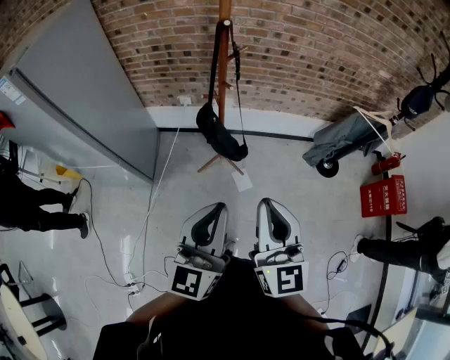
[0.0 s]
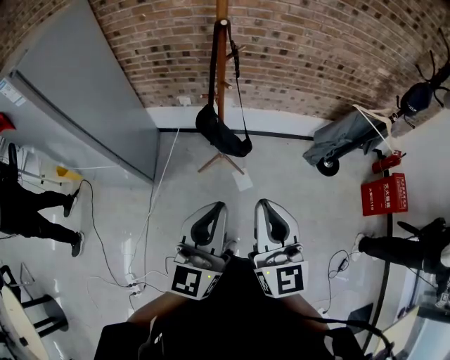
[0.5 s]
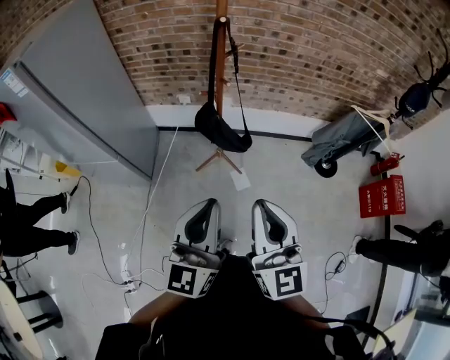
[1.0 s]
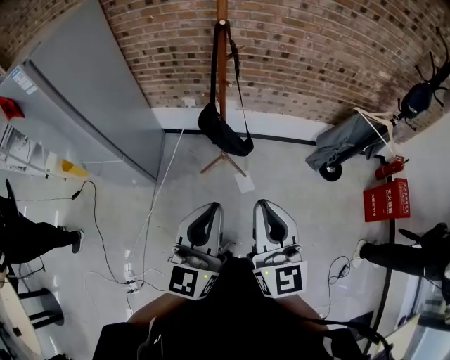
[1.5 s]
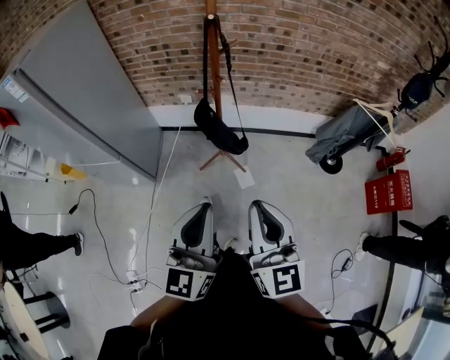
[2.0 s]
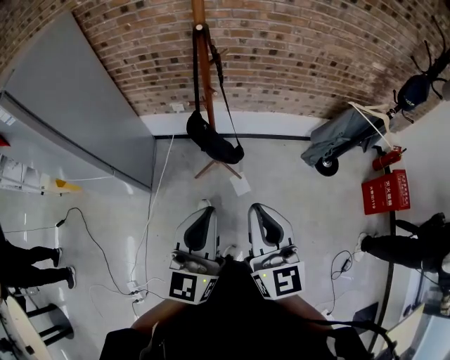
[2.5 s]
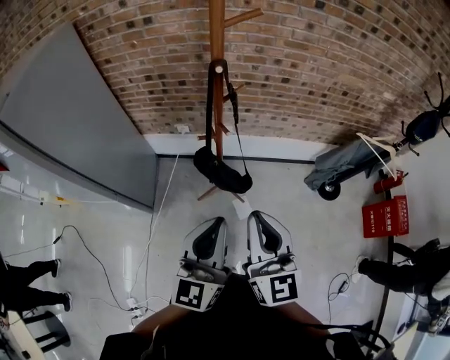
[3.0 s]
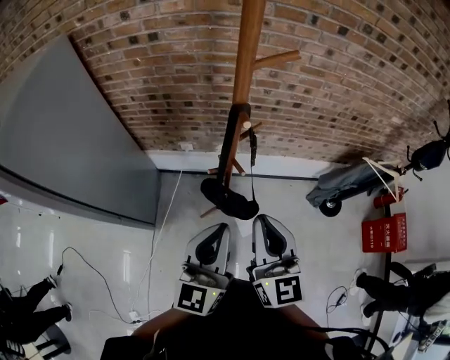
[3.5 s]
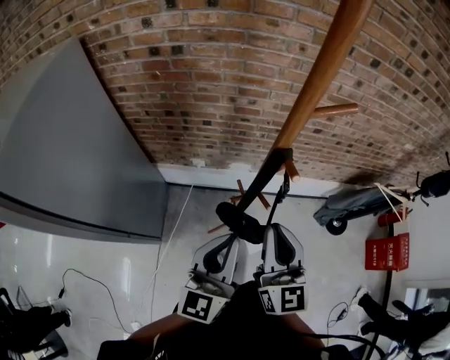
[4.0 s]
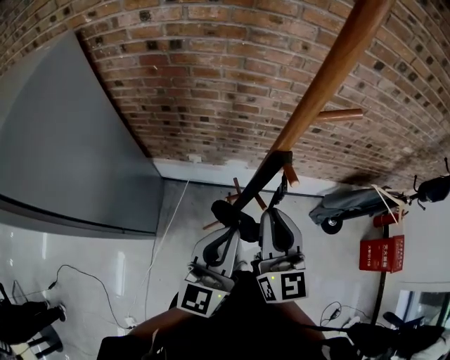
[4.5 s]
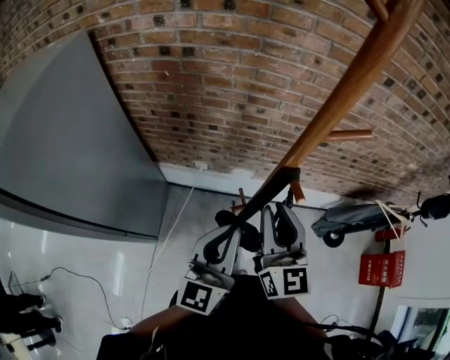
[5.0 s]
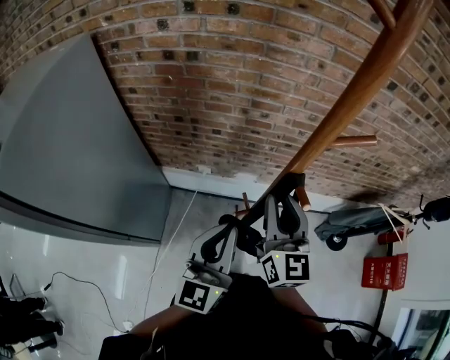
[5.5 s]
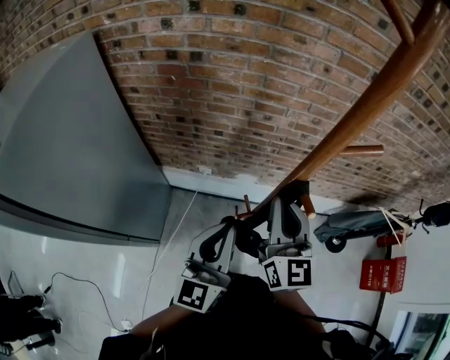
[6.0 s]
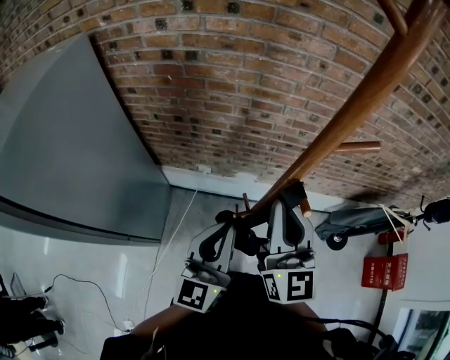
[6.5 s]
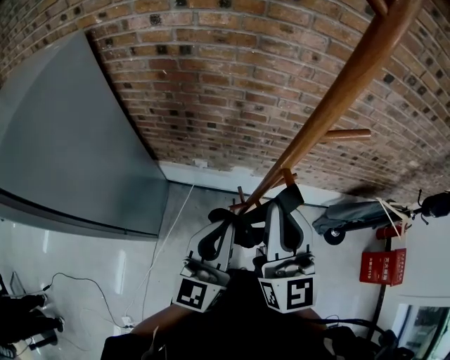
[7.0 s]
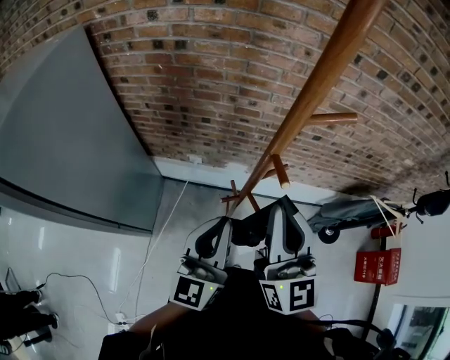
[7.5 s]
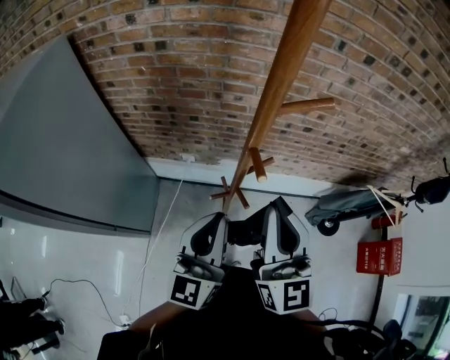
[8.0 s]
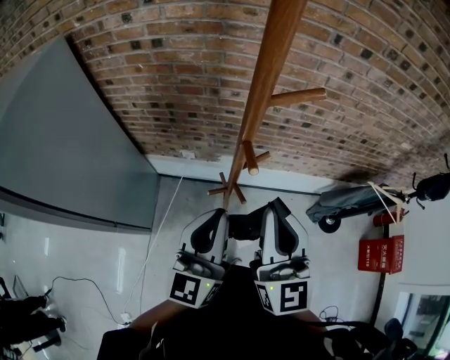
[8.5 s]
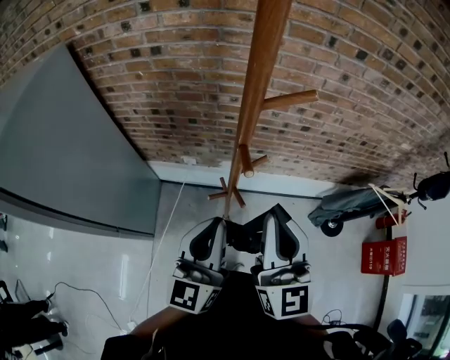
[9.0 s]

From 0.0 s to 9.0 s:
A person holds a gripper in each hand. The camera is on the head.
From 0.0 s to 2.0 s: The grippers make only small movements.
From 2.0 s to 4.5 s: Both grippers travel together forward, approximately 40 cm.
From 4.5 s to 7.0 s: The right gripper moves upward, some 10 cm, and reaches some 10 cm forward, then returns.
From 7.0 s to 9.0 s: The grippers both shift to the right by about 5 cm.

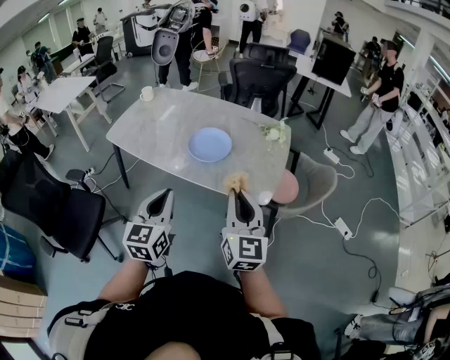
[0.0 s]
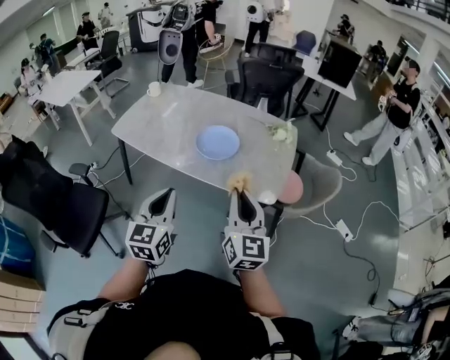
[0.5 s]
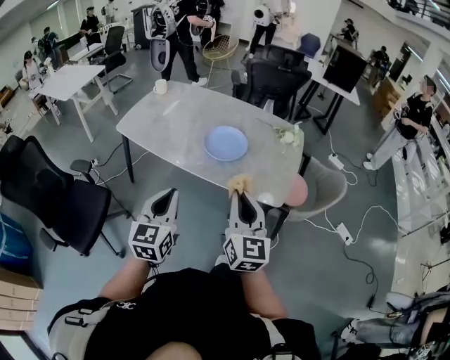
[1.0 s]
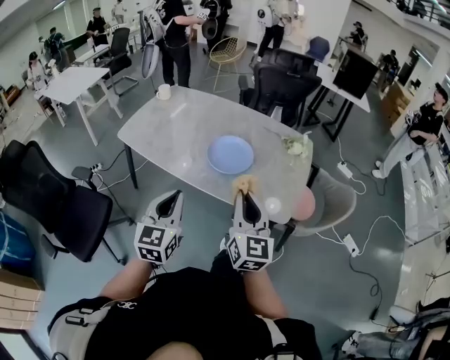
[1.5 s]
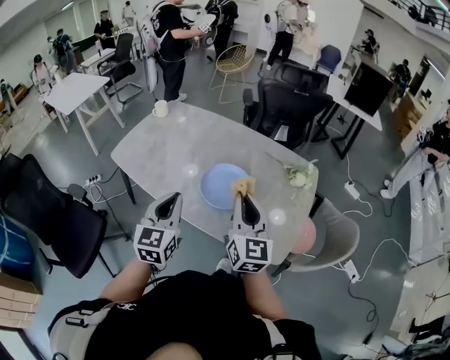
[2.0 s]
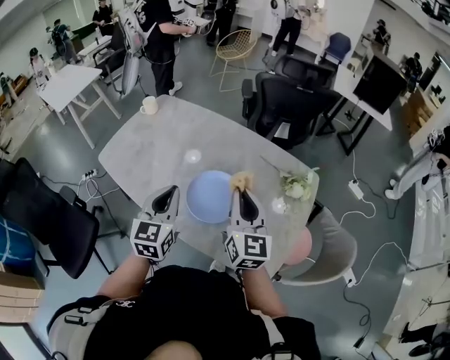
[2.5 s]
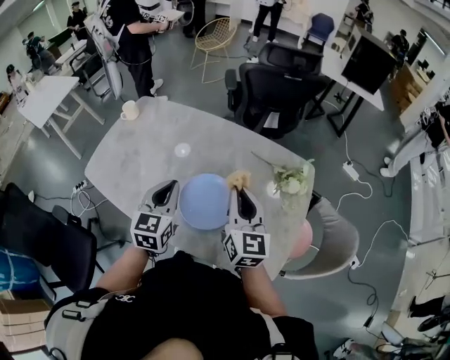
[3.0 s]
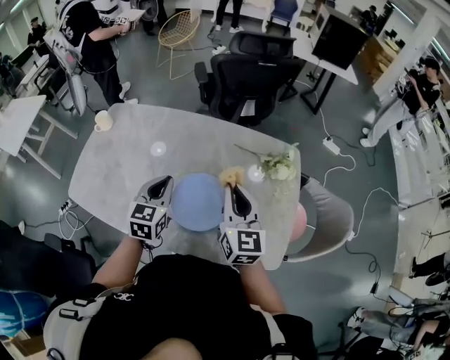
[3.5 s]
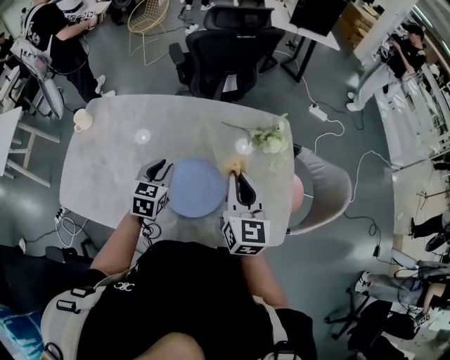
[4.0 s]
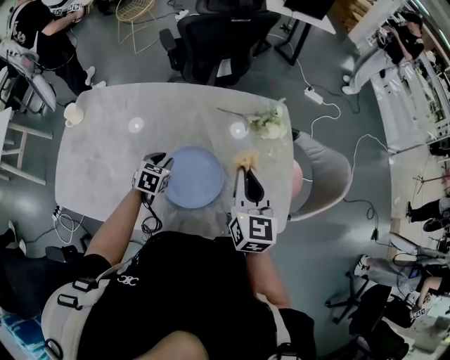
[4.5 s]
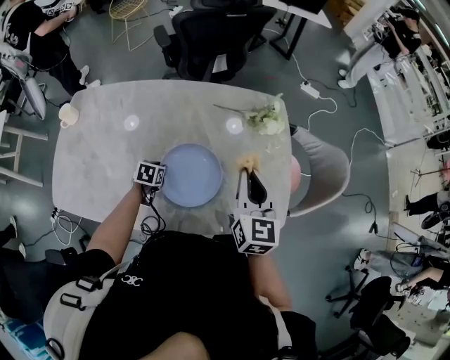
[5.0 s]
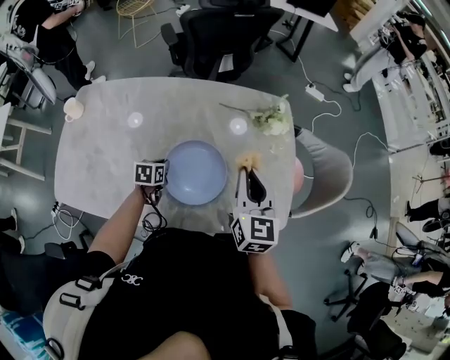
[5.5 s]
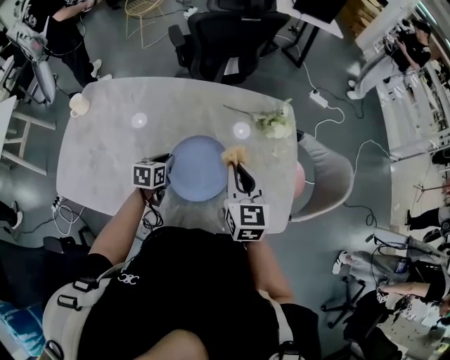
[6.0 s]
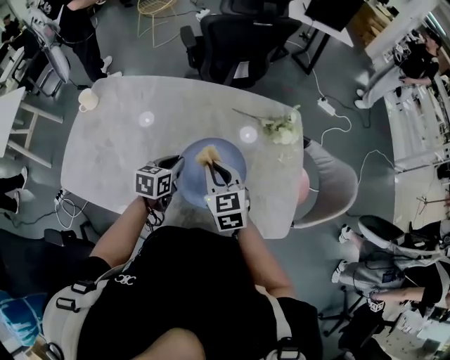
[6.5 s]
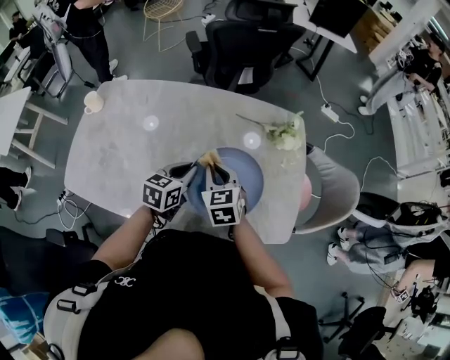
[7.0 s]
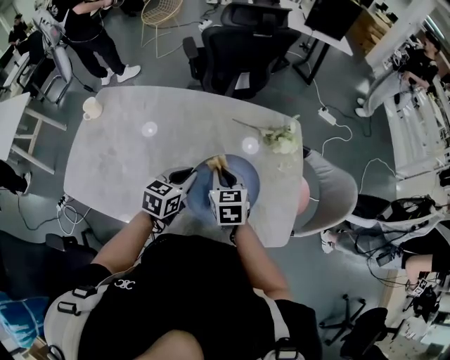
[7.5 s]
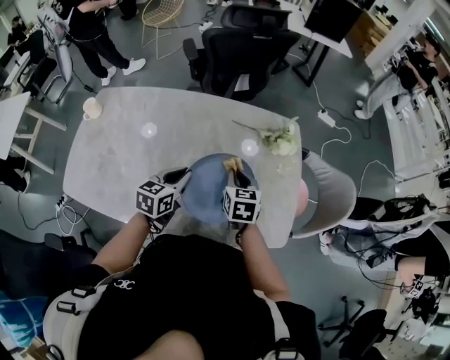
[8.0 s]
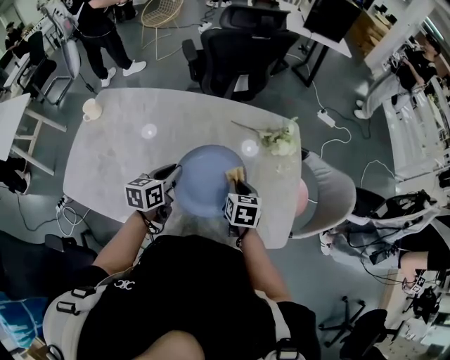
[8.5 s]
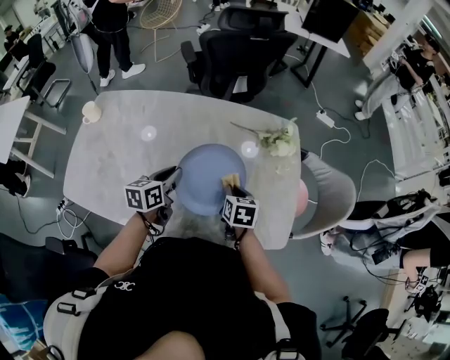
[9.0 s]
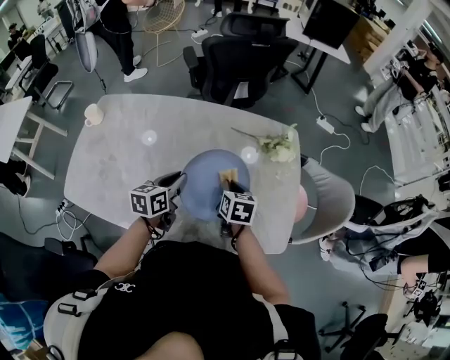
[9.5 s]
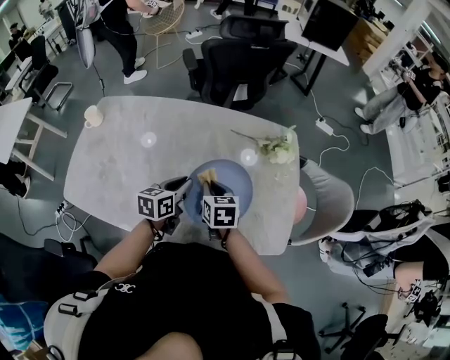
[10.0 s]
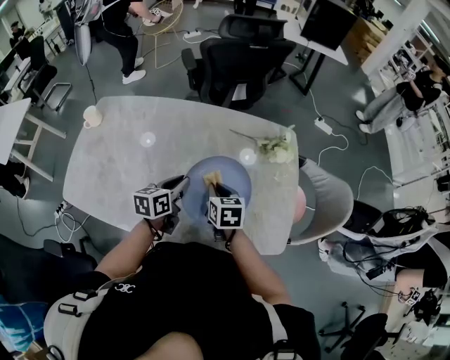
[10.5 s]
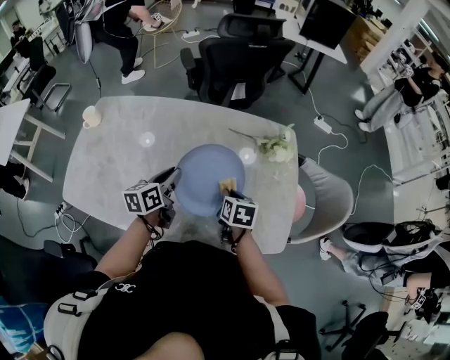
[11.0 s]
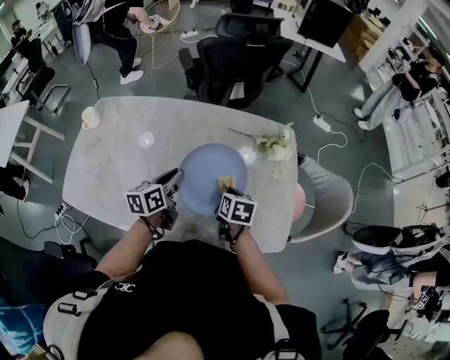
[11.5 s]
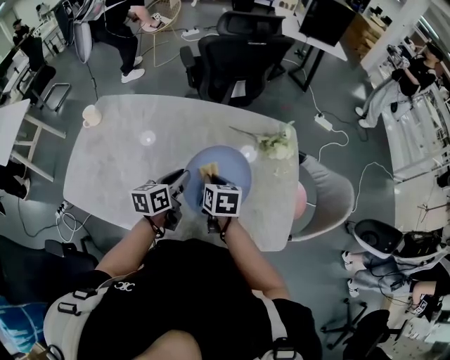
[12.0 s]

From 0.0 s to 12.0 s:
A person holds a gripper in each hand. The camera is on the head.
From 0.0 s to 2.0 s: Both grippers move forward, about 25 cm.
From 2.0 s to 4.0 s: The left gripper ends up roughly 35 cm from where it was, and rotates some 40 degrees. The right gripper moves some 20 cm, and swivels approximately 30 degrees.
From 4.0 s to 6.0 s: The left gripper moves downward, some 10 cm, and swivels some 20 degrees. Meanwhile the right gripper goes about 5 cm downward.
From 6.0 s to 8.0 s: The right gripper goes approximately 10 cm downward, reaches about 10 cm to the left, then returns, and swivels about 20 degrees. Meanwhile the left gripper shifts approximately 10 cm upward and to the right.
From 8.0 s to 10.0 s: The right gripper goes roughly 10 cm to the left.
From 10.0 s to 12.0 s: The right gripper reaches roughly 10 cm to the right, then returns.

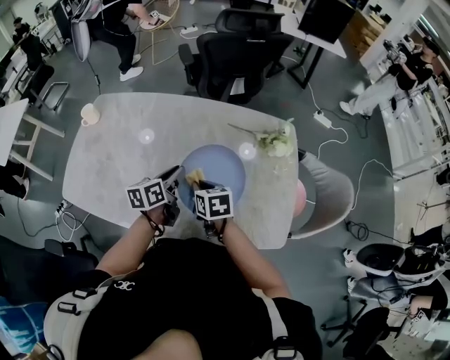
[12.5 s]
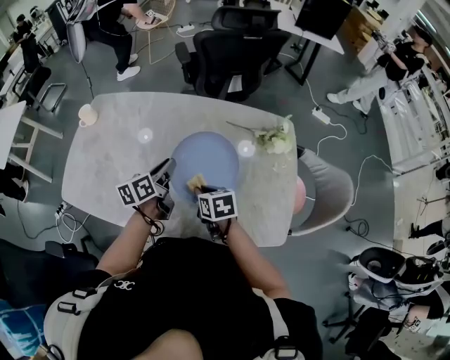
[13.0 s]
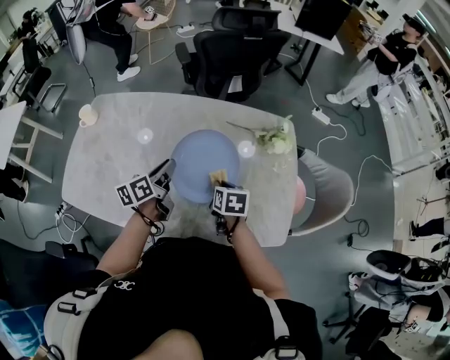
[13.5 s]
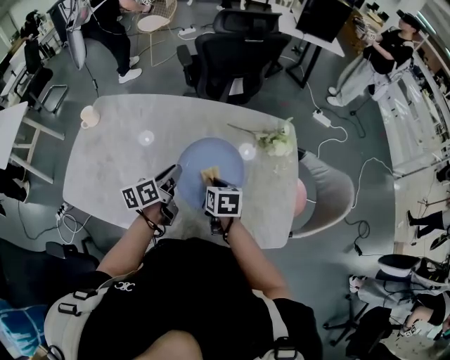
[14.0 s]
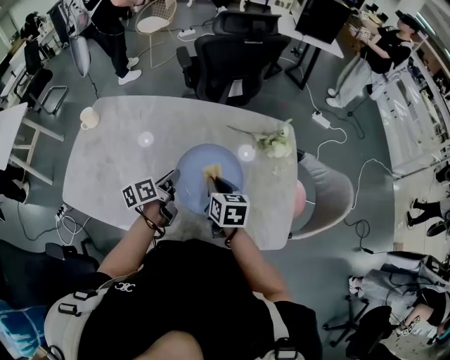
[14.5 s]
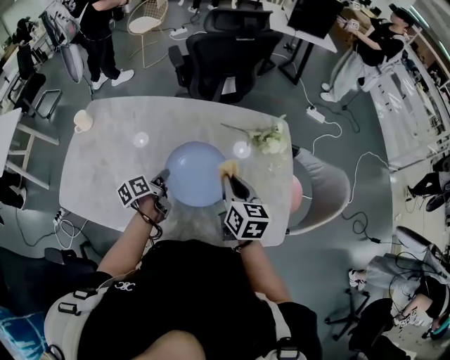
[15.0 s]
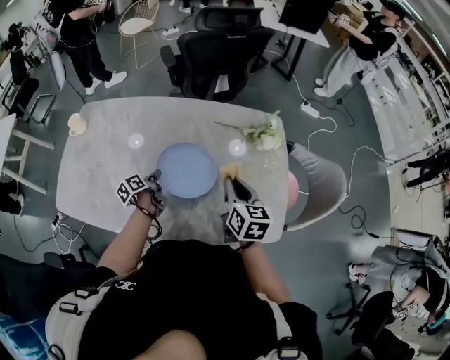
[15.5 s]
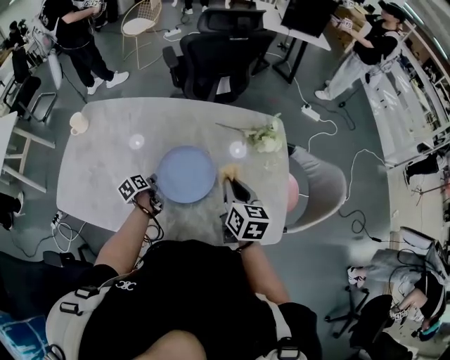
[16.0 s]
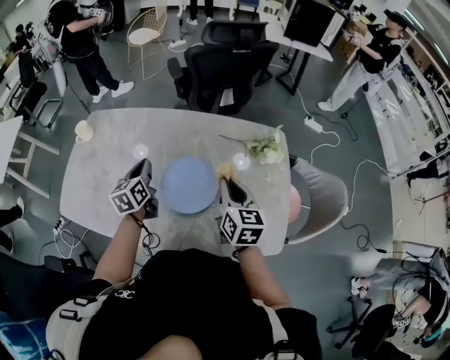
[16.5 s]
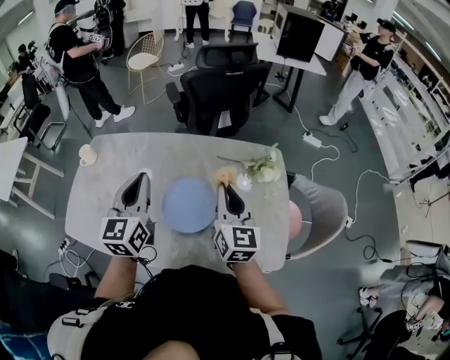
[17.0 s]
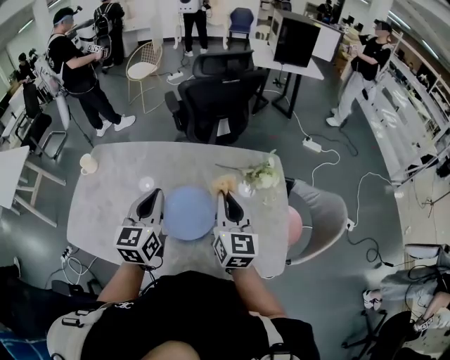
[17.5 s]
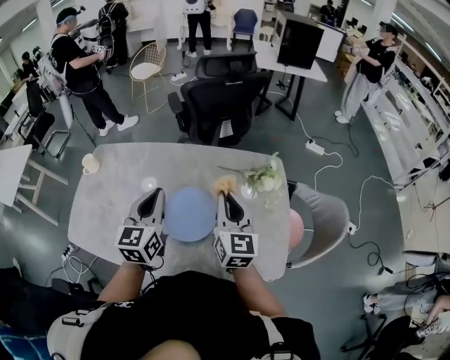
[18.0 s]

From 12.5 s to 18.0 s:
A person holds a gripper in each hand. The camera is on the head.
From 12.5 s to 14.5 s: The right gripper shifts roughly 5 cm to the right.
From 14.5 s to 16.0 s: The left gripper travels downward and to the left by approximately 15 cm, and changes its angle by about 30 degrees; the right gripper travels to the right by roughly 10 cm.
From 16.0 s to 18.0 s: The right gripper goes roughly 10 cm upward, and rotates some 30 degrees. Meanwhile the left gripper travels upward by approximately 35 cm, and rolls clockwise, seen from behind, by approximately 50 degrees.
